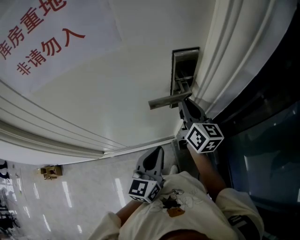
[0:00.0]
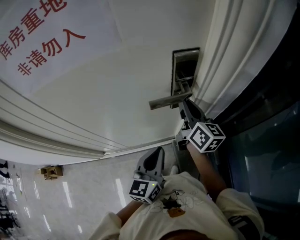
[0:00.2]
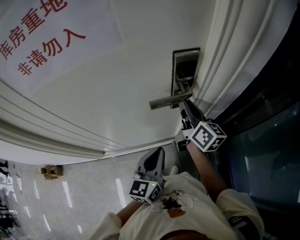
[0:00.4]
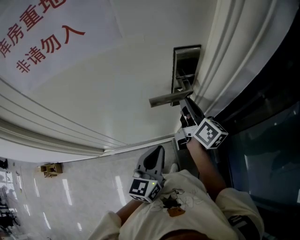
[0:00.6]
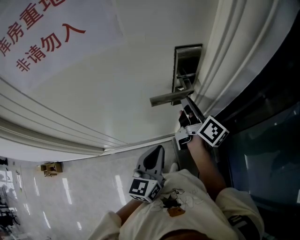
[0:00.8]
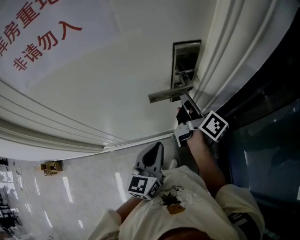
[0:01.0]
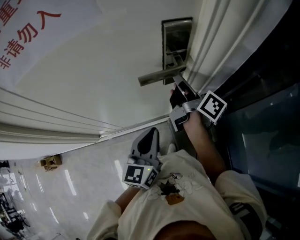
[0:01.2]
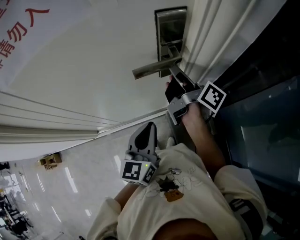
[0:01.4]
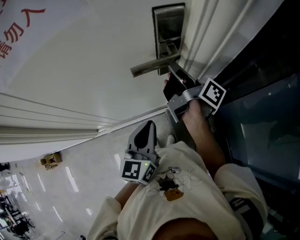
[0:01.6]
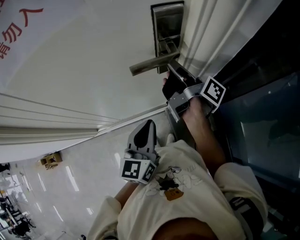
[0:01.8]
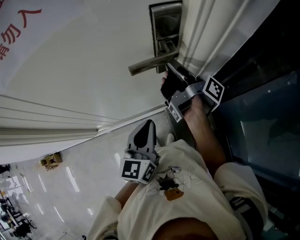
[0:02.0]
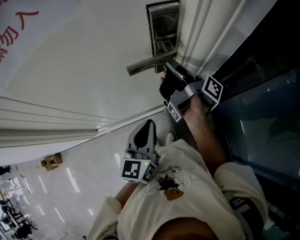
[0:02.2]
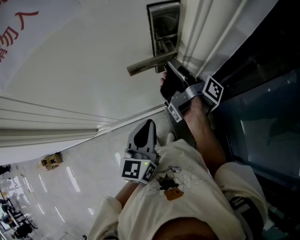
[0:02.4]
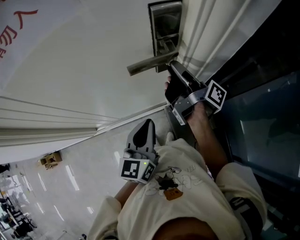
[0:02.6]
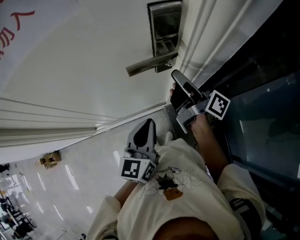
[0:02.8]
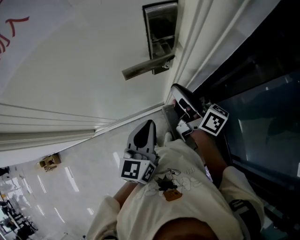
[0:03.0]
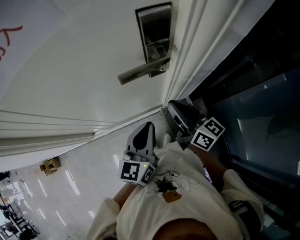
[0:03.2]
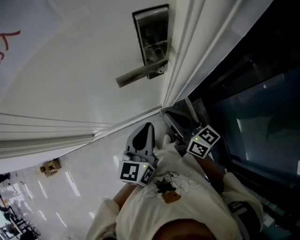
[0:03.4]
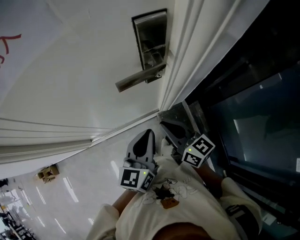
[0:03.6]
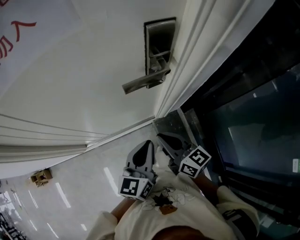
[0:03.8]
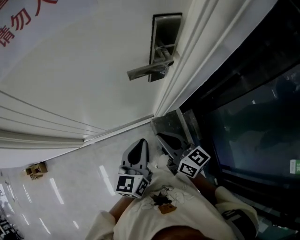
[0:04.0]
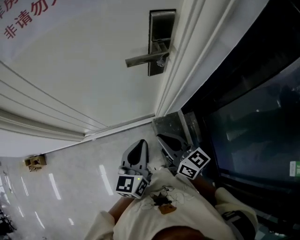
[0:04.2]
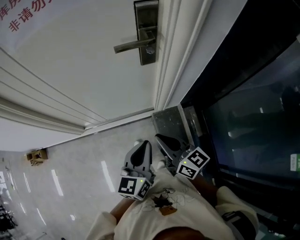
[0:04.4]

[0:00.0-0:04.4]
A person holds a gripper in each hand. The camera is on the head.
0:00.0 to 0:01.4: The right gripper rotates around the line of its fingers by roughly 50 degrees, clockwise from behind.
0:01.4 to 0:03.0: The right gripper heads backward, covering about 5 cm, rotates some 30 degrees, and opens, then closes again.
0:03.0 to 0:04.4: The two grippers go some 20 cm backward. The right gripper swivels approximately 30 degrees.

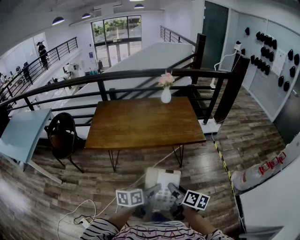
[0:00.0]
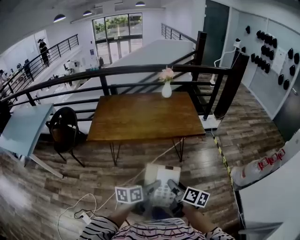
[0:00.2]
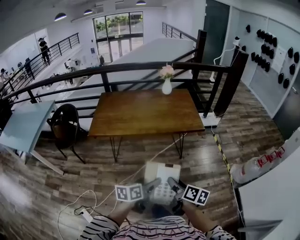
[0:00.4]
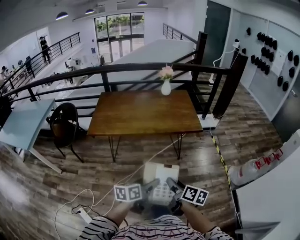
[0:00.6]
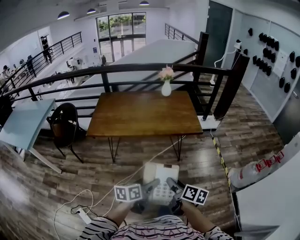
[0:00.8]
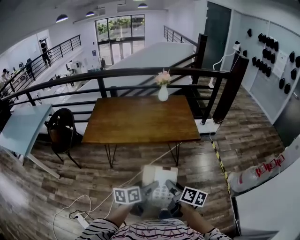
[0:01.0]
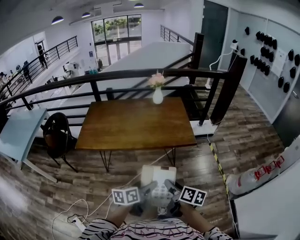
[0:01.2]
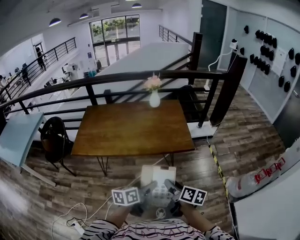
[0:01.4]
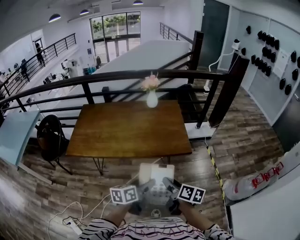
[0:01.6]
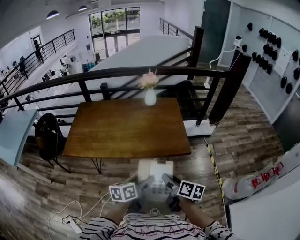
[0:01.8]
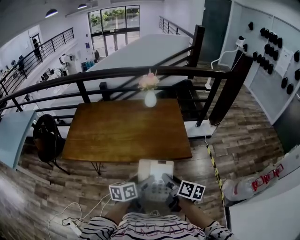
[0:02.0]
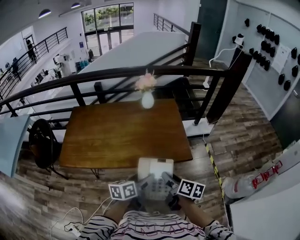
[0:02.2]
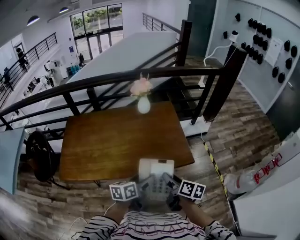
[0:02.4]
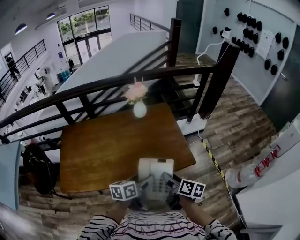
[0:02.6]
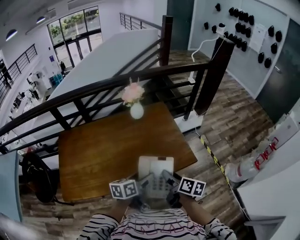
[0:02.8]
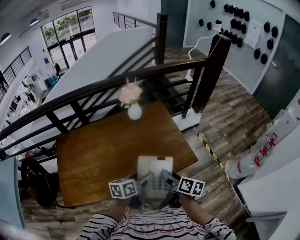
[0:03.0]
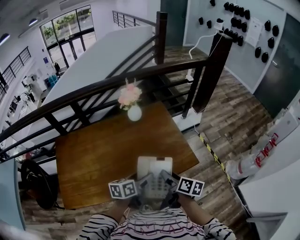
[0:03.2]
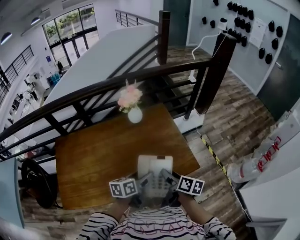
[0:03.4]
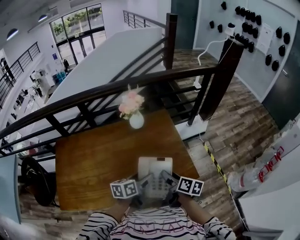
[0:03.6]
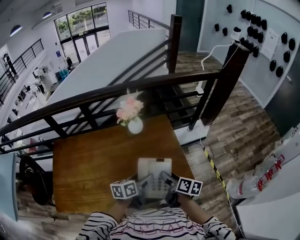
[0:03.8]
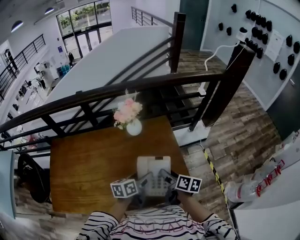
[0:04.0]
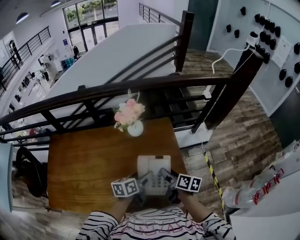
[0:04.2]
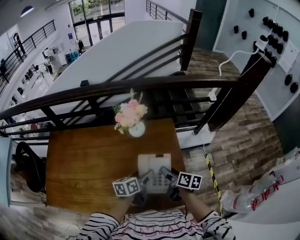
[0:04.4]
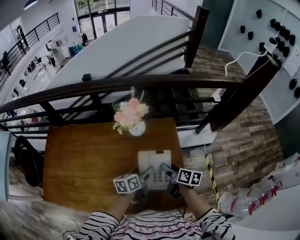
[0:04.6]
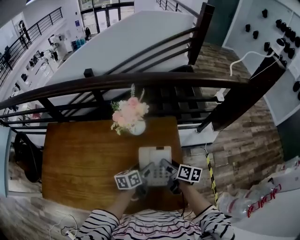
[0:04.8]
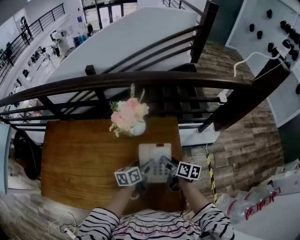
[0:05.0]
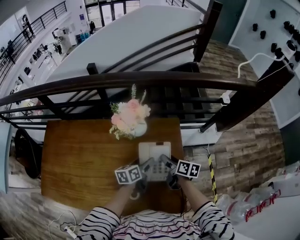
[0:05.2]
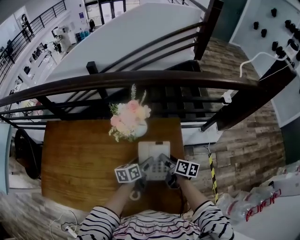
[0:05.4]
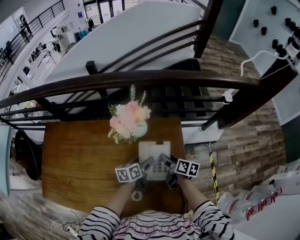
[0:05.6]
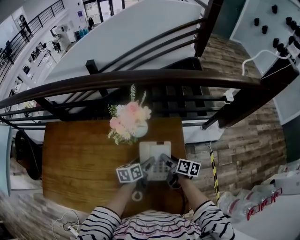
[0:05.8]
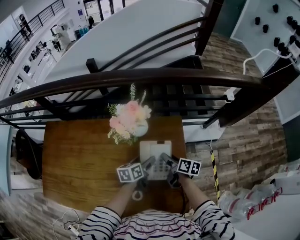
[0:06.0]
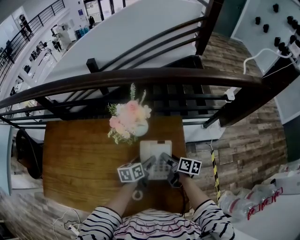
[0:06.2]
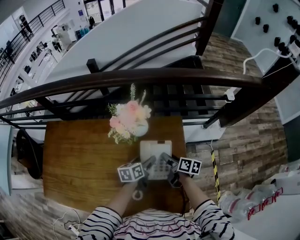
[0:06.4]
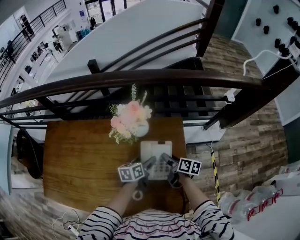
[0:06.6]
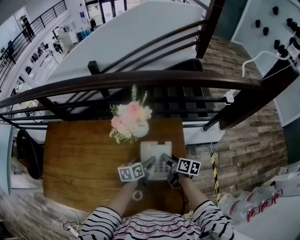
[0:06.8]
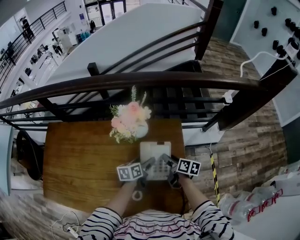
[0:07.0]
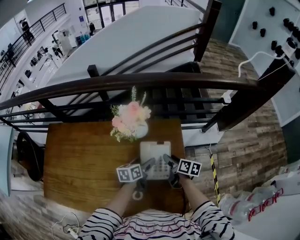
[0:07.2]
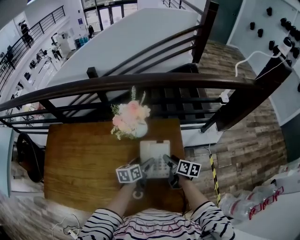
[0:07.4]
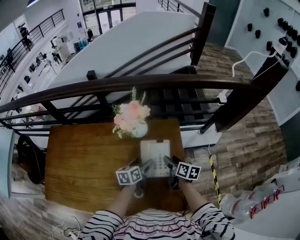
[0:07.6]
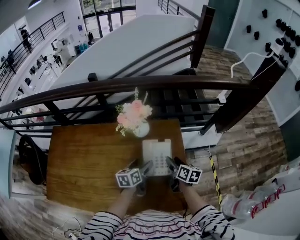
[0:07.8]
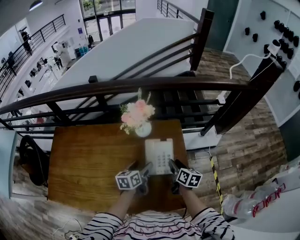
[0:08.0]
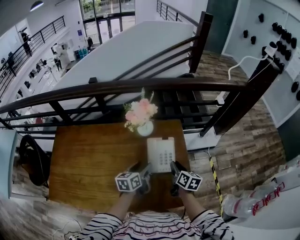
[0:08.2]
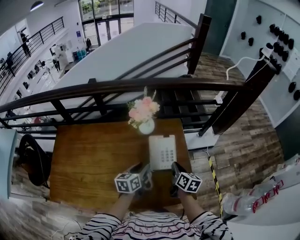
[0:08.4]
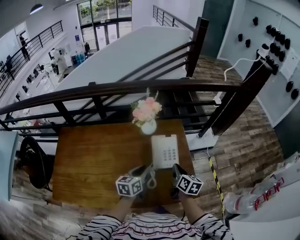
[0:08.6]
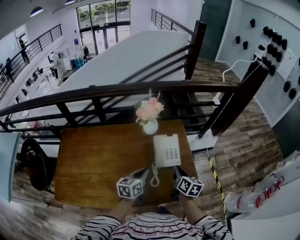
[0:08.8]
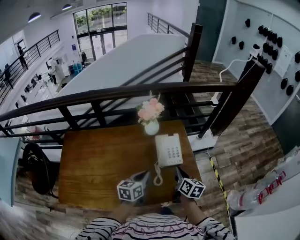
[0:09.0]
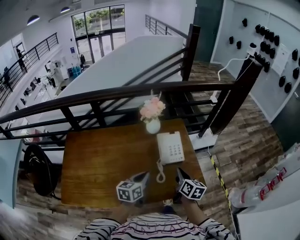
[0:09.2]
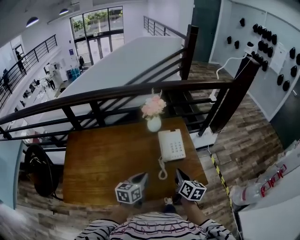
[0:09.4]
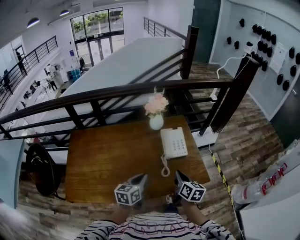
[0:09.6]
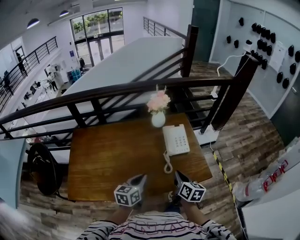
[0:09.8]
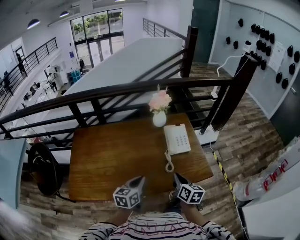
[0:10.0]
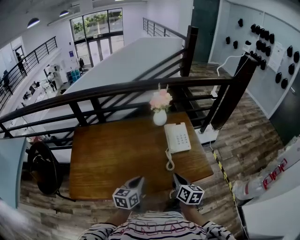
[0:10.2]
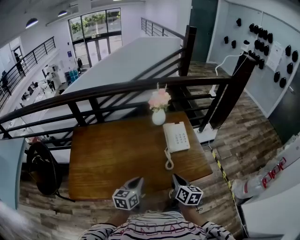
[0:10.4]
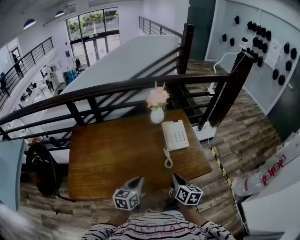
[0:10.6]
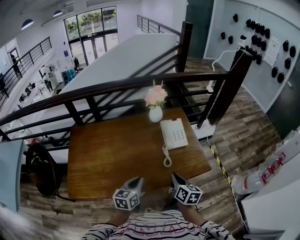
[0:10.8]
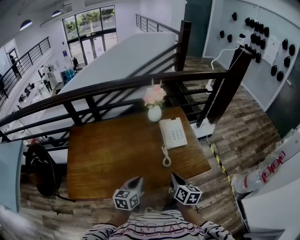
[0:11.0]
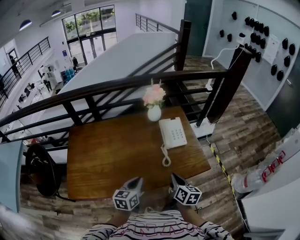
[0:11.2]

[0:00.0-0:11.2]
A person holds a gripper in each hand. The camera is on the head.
0:00.0 to 0:01.6: Both grippers move forward and to the right, some 25 cm.
0:01.6 to 0:03.2: The right gripper is displaced forward and to the left by roughly 35 cm, while the left gripper travels forward by approximately 35 cm.
0:03.2 to 0:04.8: The two grippers go about 35 cm forward. The right gripper changes its angle by roughly 20 degrees; the left gripper swivels roughly 20 degrees.
0:04.8 to 0:06.4: Both grippers travel together forward and downward, roughly 10 cm.
0:06.4 to 0:08.0: The grippers both shift backward and upward by roughly 15 cm. The right gripper changes its angle by about 20 degrees.
0:08.0 to 0:09.6: The right gripper travels backward by roughly 30 cm, and closes up; the left gripper moves backward and to the left, about 30 cm, and closes.
0:09.6 to 0:11.2: Both grippers travel together backward, some 10 cm.

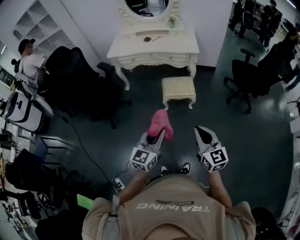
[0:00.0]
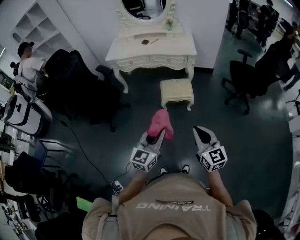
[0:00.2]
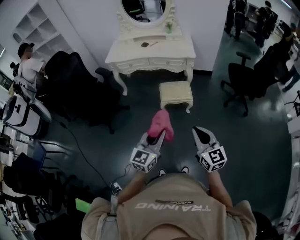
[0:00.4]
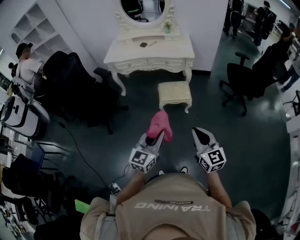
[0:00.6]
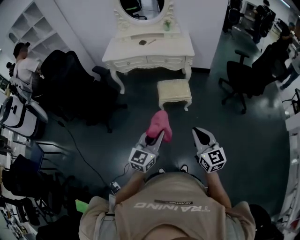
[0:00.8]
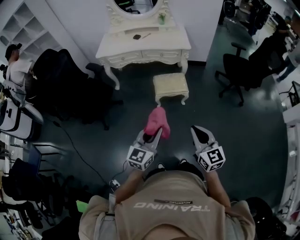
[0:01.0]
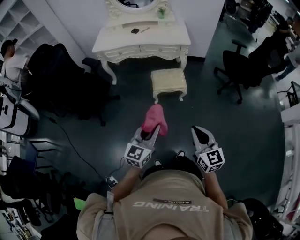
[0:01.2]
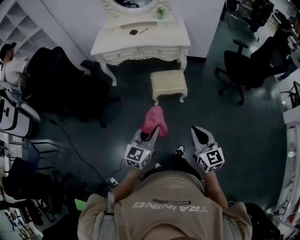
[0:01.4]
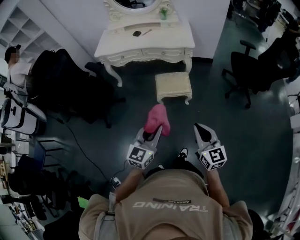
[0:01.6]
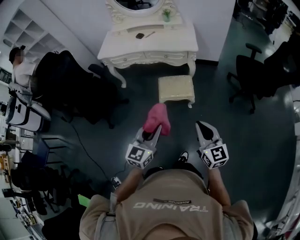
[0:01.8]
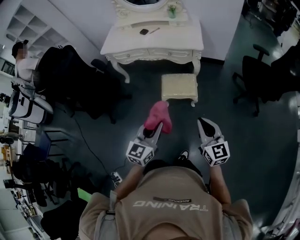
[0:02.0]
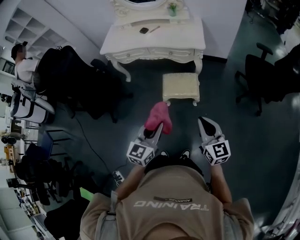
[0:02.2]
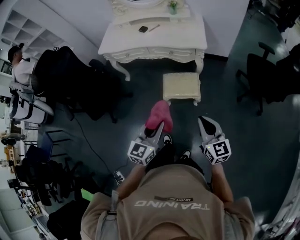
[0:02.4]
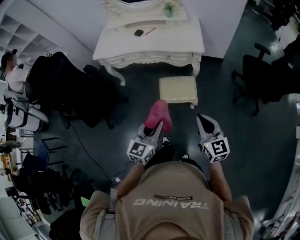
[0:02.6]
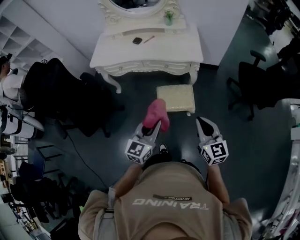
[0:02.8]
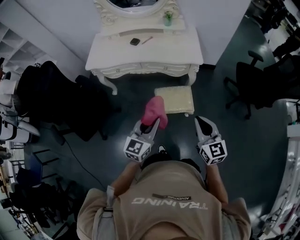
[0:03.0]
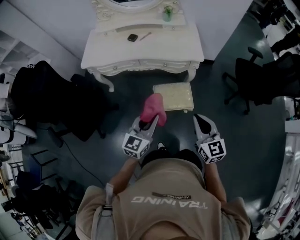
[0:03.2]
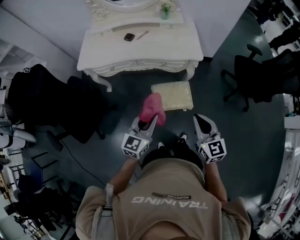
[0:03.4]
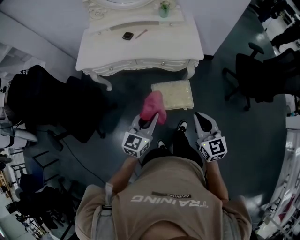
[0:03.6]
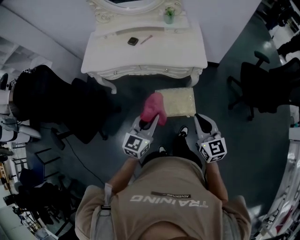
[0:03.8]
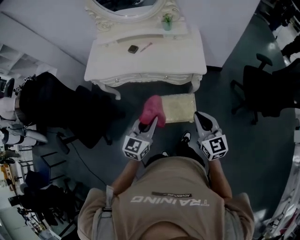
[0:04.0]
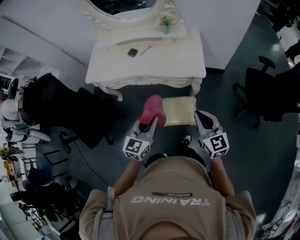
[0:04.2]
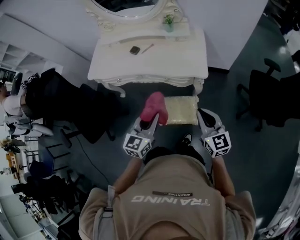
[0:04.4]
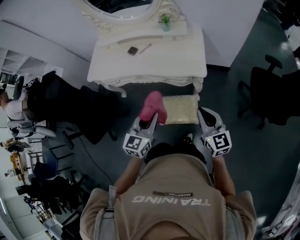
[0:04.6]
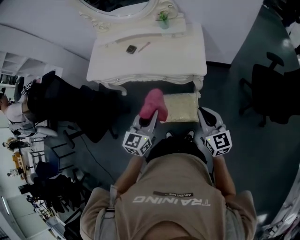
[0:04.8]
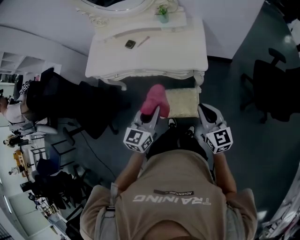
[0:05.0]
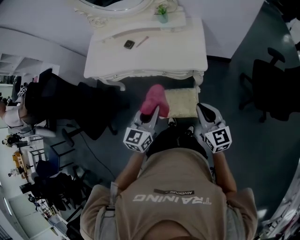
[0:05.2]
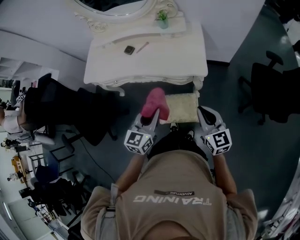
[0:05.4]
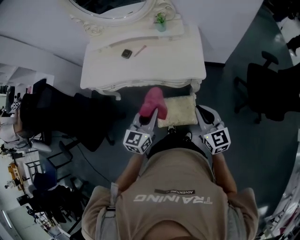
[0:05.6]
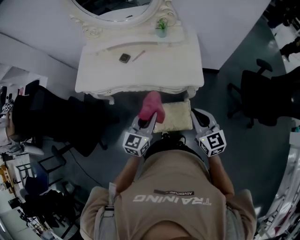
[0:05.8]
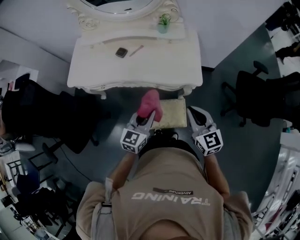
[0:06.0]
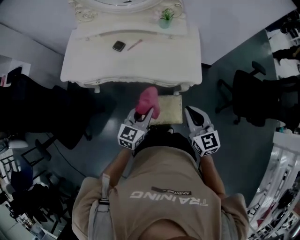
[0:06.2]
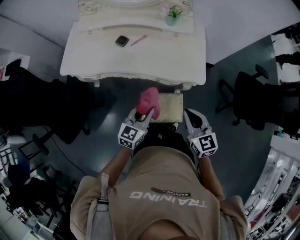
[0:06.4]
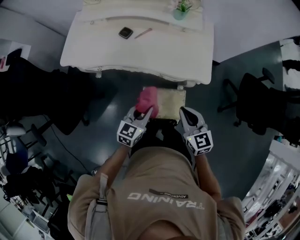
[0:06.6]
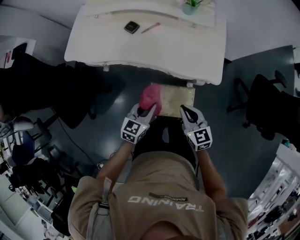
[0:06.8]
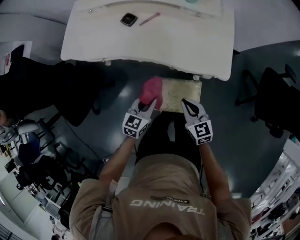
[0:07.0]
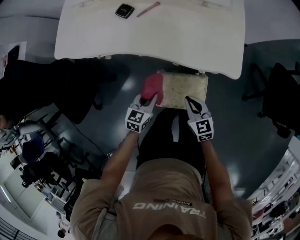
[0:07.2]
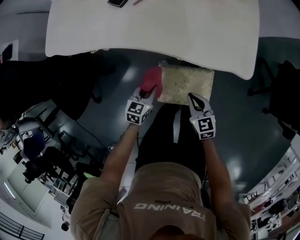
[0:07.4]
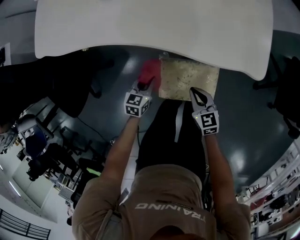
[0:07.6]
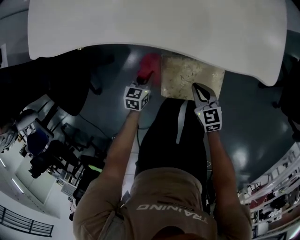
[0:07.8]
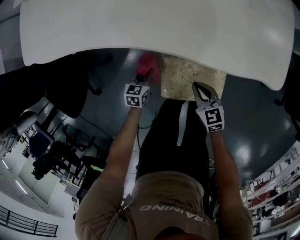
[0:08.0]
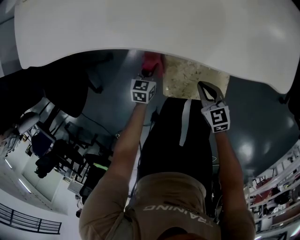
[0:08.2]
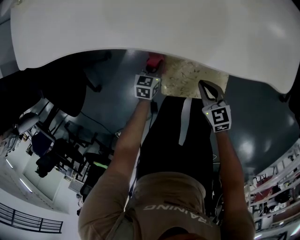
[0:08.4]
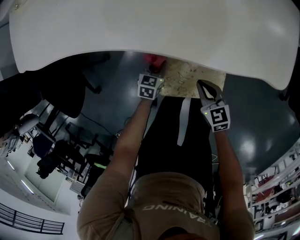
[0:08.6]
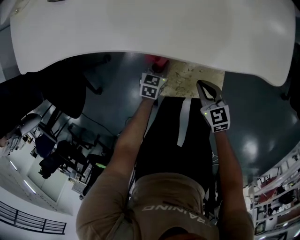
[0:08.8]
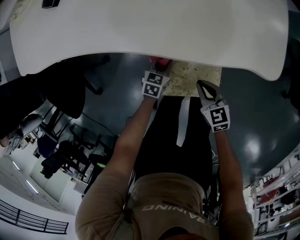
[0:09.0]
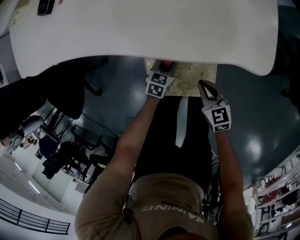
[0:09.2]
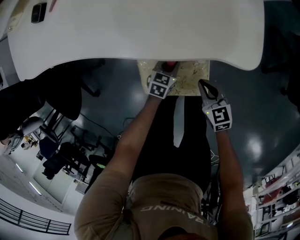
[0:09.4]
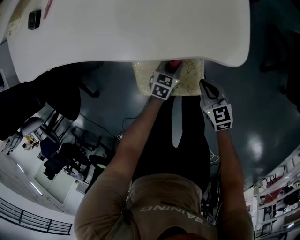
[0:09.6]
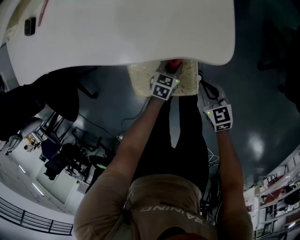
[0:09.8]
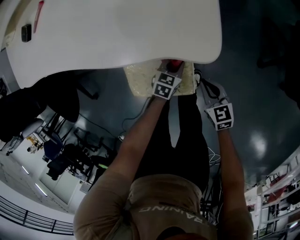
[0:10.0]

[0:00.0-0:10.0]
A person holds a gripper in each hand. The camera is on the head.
0:00.0 to 0:01.4: Both grippers move forward, about 5 cm.
0:01.4 to 0:02.8: Both grippers travel together forward, about 30 cm.
0:02.8 to 0:04.2: Both grippers move forward, roughly 25 cm.
0:04.2 to 0:05.8: The grippers both shift forward by about 10 cm.
0:05.8 to 0:07.2: The grippers both shift downward by about 30 cm. The right gripper swivels roughly 20 degrees; the left gripper changes its angle by some 30 degrees.
0:07.2 to 0:08.6: The two grippers go some 25 cm downward.
0:08.6 to 0:10.0: Both grippers travel together to the right, some 25 cm.
